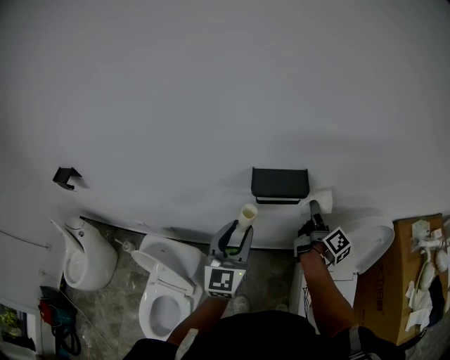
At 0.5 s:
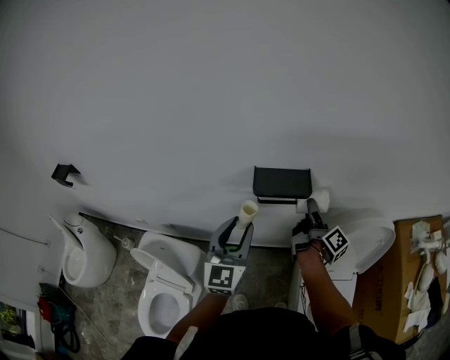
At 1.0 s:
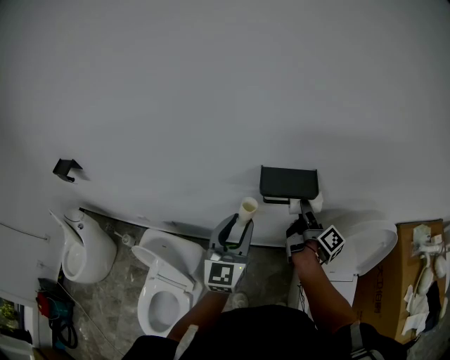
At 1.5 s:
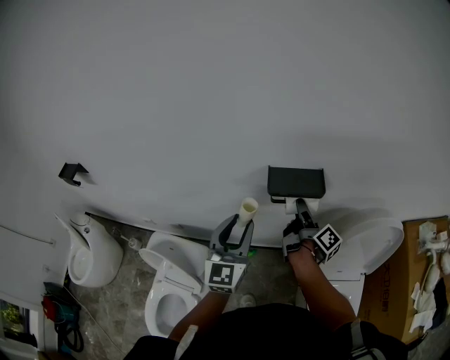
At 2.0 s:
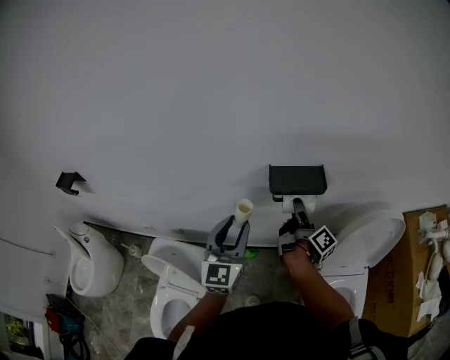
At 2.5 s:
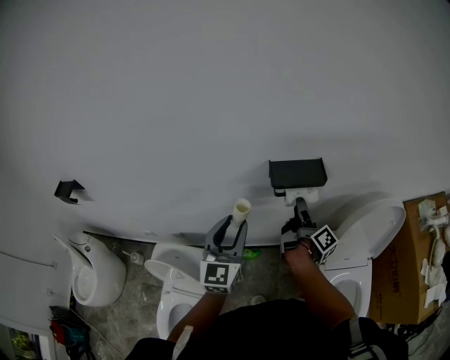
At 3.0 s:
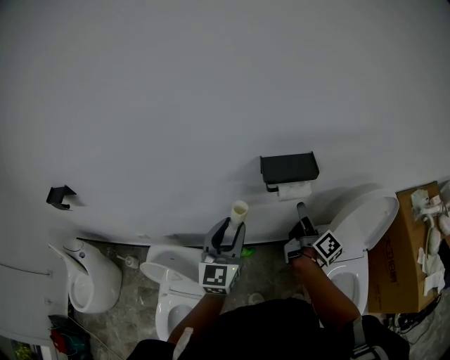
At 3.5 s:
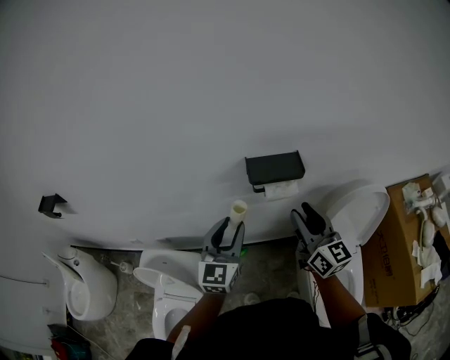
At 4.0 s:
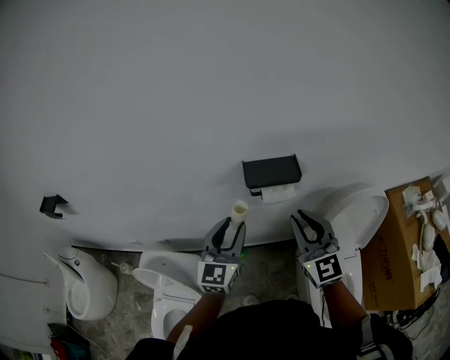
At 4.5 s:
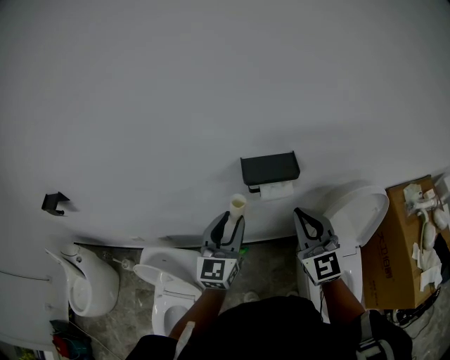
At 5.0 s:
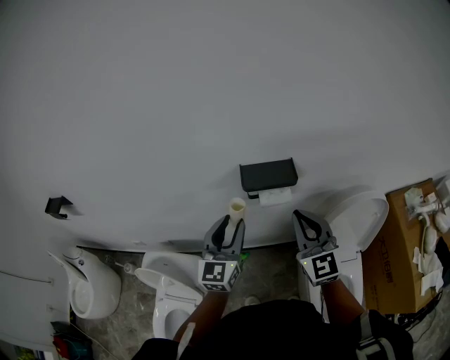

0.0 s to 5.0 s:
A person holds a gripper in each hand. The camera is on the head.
0.0 to 2.5 s: Both grippers travel together to the left, roughly 10 cm.
2.5 to 5.0 s: The left gripper goes some 5 cm to the right. The right gripper goes some 15 cm upward and backward, twists roughly 100 degrees counterclockwise, seen from behind, and closes its fingers.

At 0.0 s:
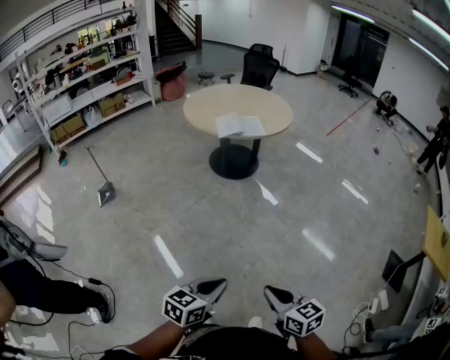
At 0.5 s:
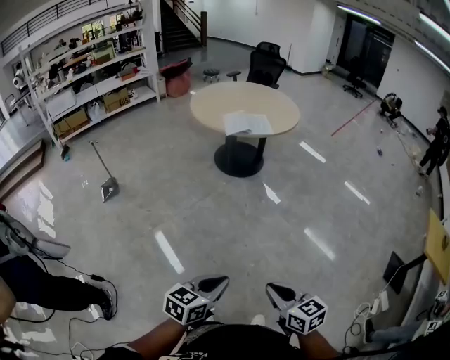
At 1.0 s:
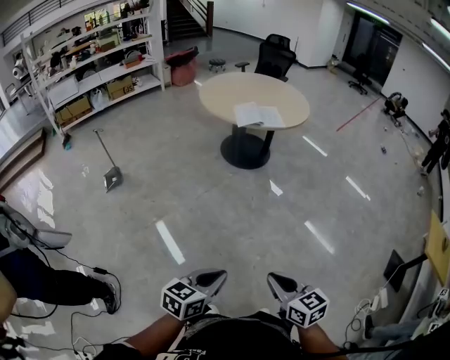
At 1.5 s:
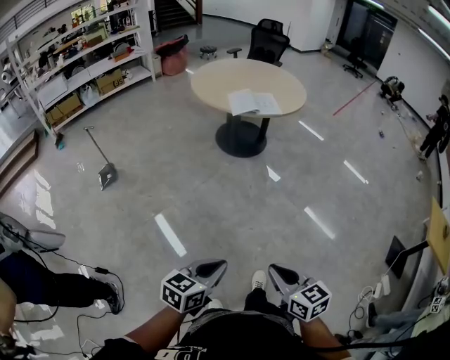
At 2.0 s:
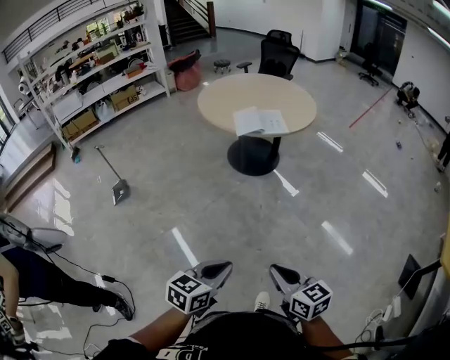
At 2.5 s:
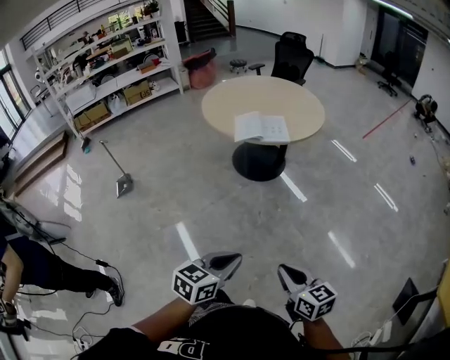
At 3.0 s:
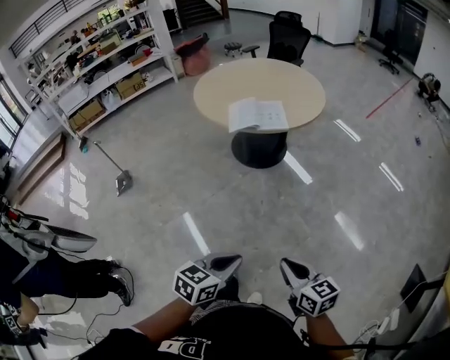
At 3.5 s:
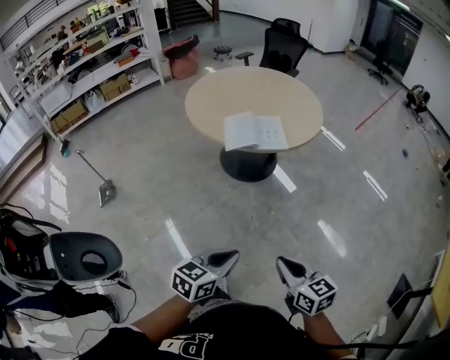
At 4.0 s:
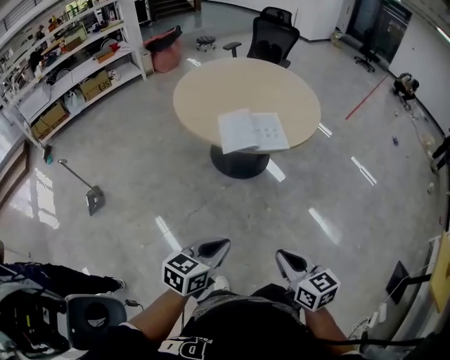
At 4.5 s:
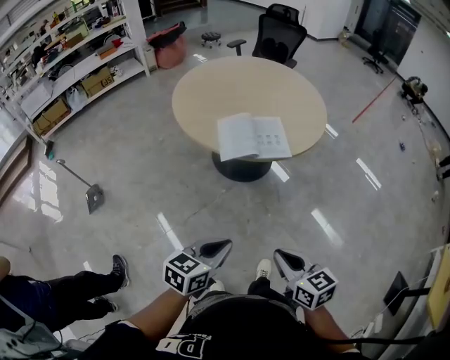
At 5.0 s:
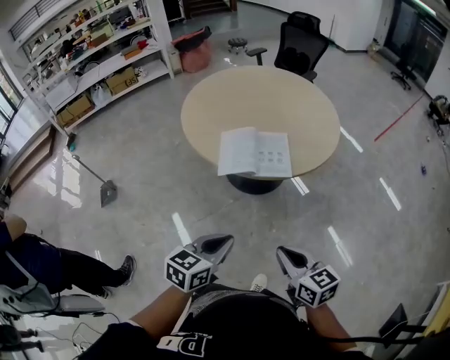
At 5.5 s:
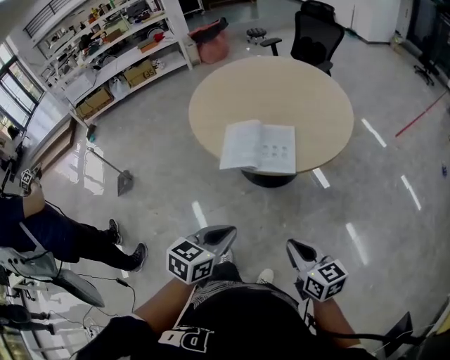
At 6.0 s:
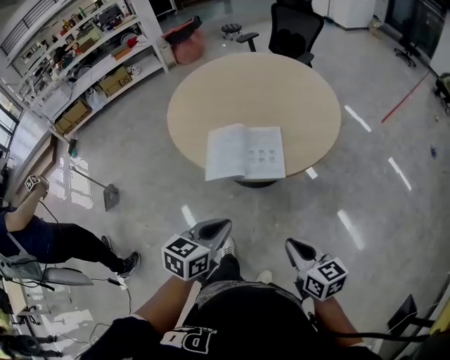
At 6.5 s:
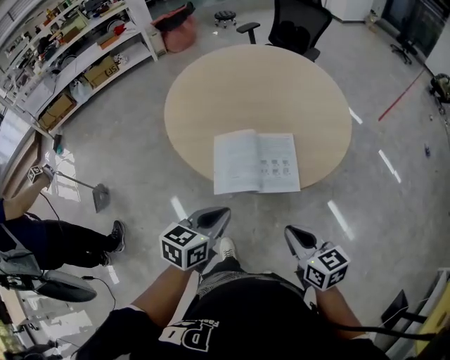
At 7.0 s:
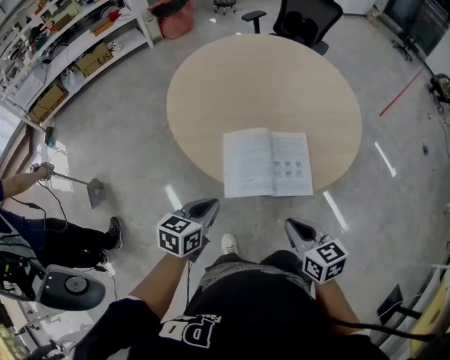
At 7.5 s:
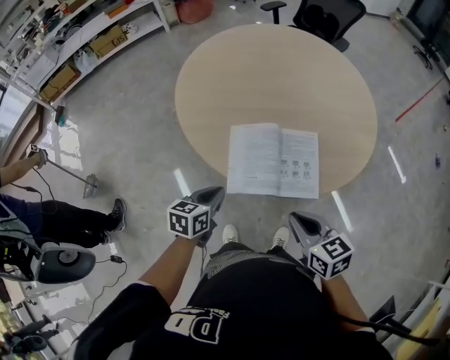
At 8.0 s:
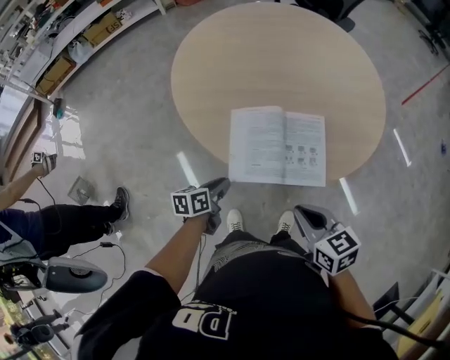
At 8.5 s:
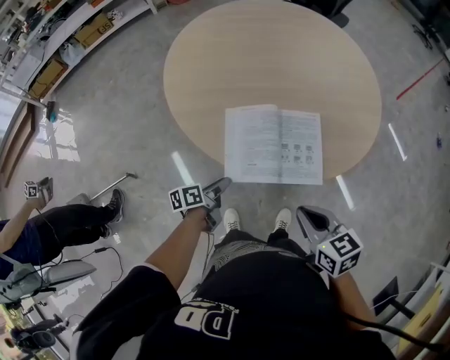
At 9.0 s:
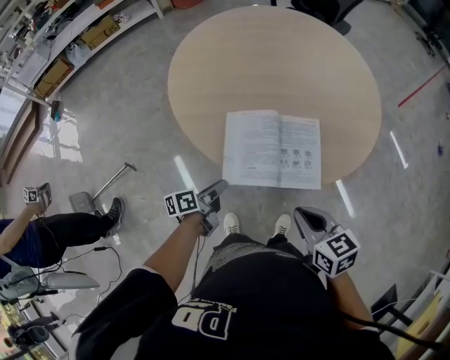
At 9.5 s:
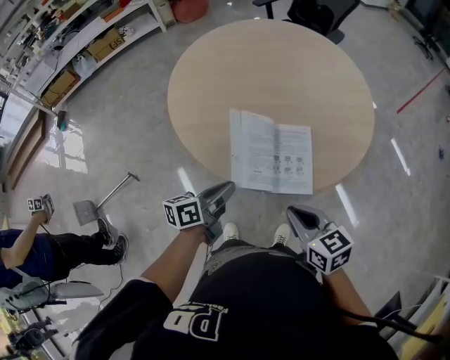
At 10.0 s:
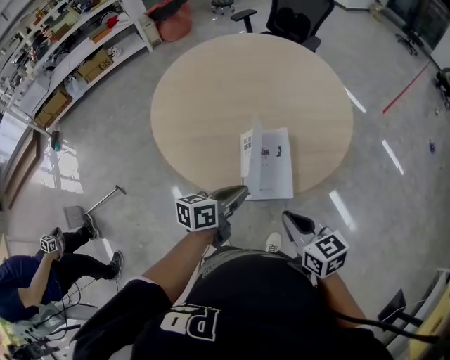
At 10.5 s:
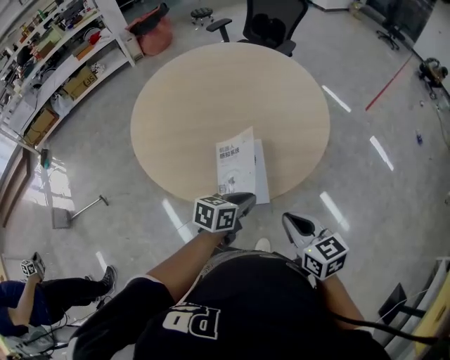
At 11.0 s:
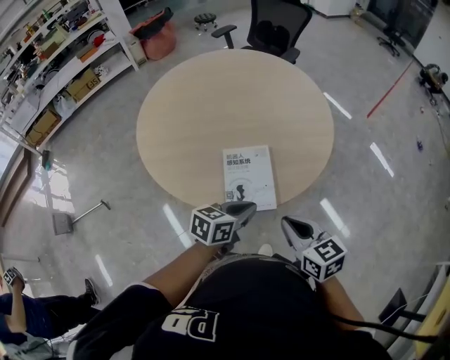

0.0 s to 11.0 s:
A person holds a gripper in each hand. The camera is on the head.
0.0 to 2.0 s: Both grippers move forward, roughly 15 cm.
2.0 to 3.5 s: Both grippers travel together forward, some 25 cm.
3.5 to 5.5 s: Both grippers move forward, some 30 cm.
5.5 to 7.5 s: The right gripper shifts roughly 25 cm forward and to the left; the left gripper heads forward, to the left and downward, covering approximately 35 cm.
7.5 to 9.0 s: The left gripper shifts roughly 10 cm downward, swivels some 40 degrees, and opens and closes again.
9.0 to 11.0 s: The left gripper is displaced to the right and upward by roughly 30 cm, and rotates around the line of its fingers by roughly 40 degrees, clockwise from behind, while the right gripper goes about 10 cm to the right.

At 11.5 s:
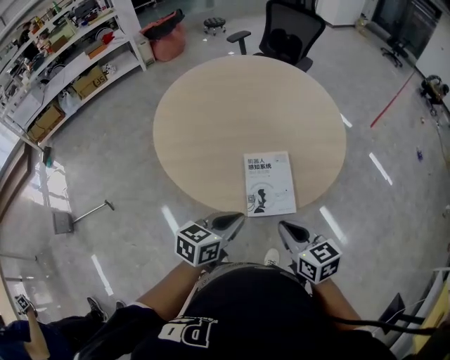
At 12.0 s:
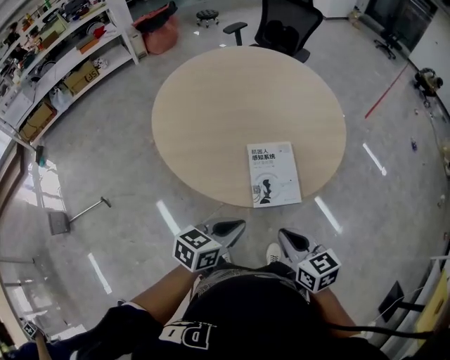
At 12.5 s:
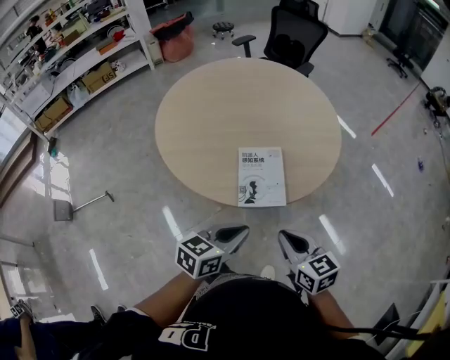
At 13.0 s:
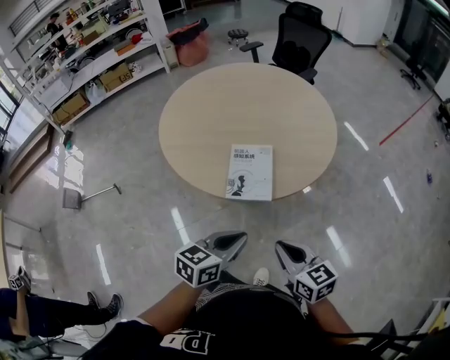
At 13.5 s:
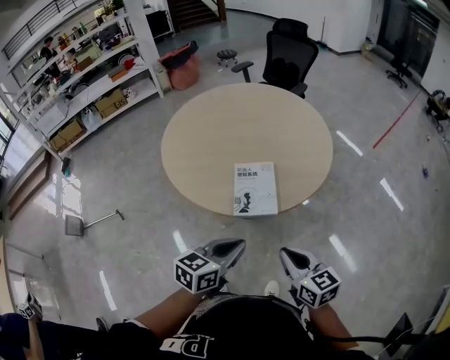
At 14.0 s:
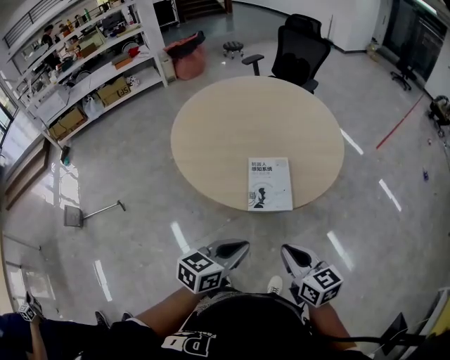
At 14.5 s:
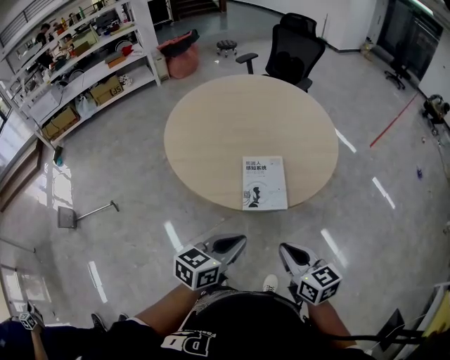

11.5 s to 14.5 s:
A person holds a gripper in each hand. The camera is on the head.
11.5 to 13.0 s: Both grippers travel together to the right and backward, roughly 20 cm.
13.0 to 14.5 s: The grippers both shift to the left by roughly 10 cm.

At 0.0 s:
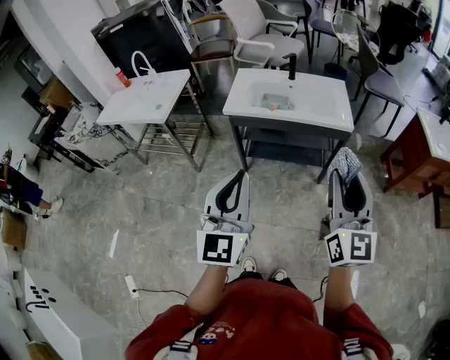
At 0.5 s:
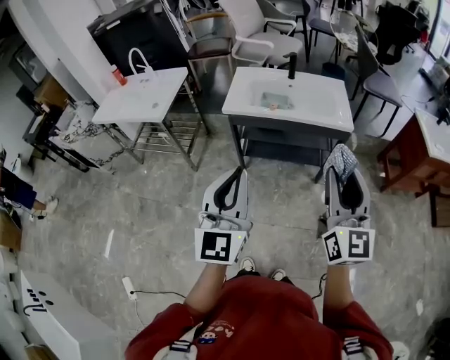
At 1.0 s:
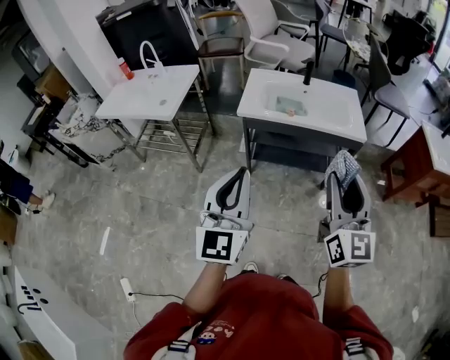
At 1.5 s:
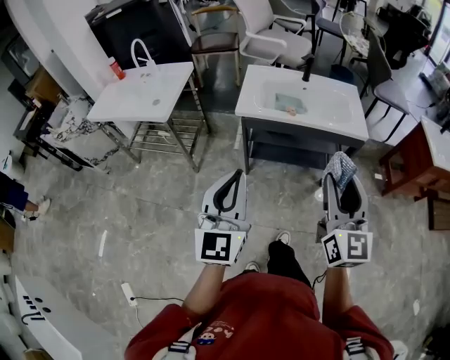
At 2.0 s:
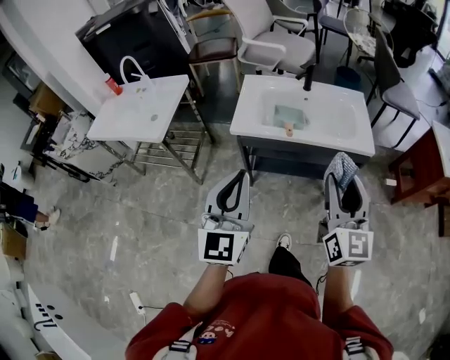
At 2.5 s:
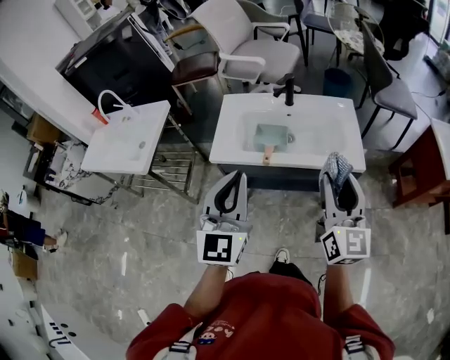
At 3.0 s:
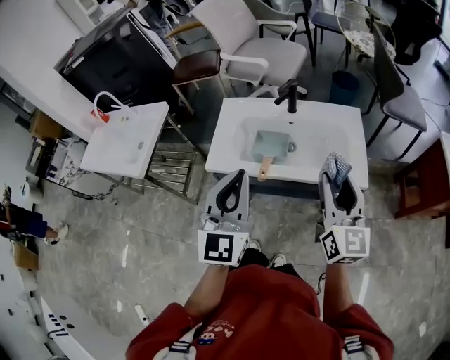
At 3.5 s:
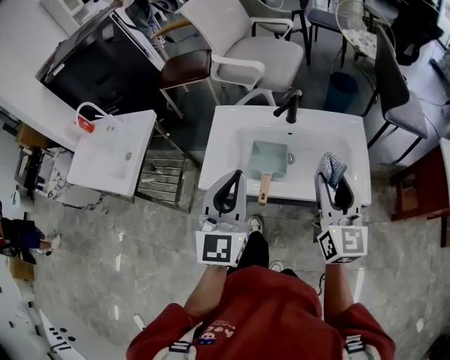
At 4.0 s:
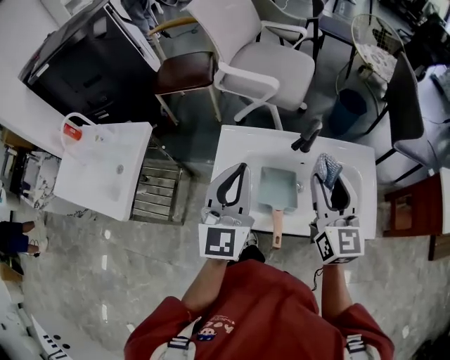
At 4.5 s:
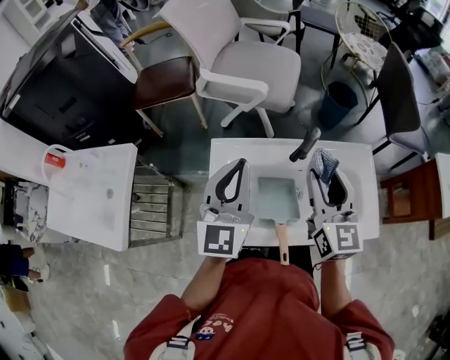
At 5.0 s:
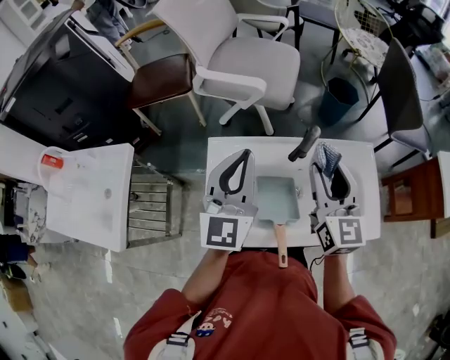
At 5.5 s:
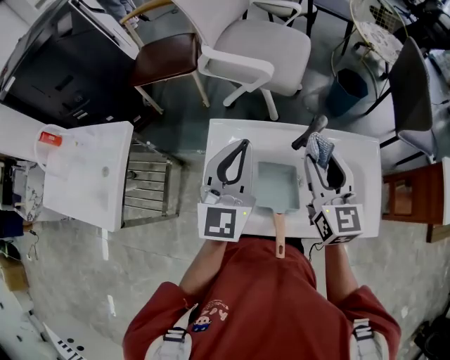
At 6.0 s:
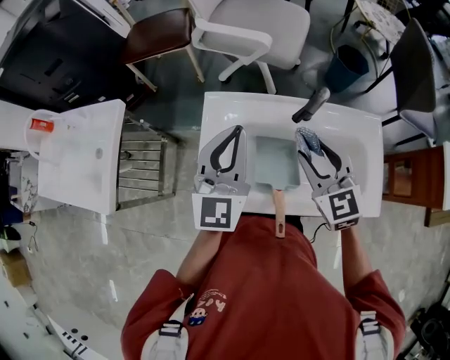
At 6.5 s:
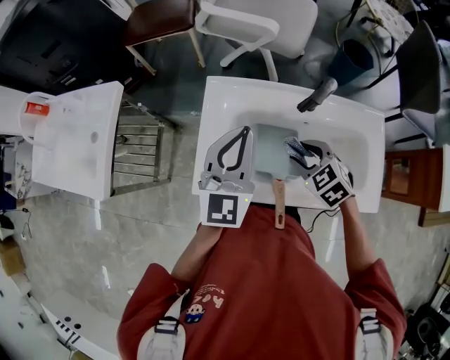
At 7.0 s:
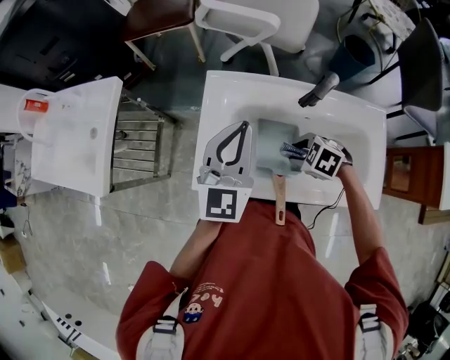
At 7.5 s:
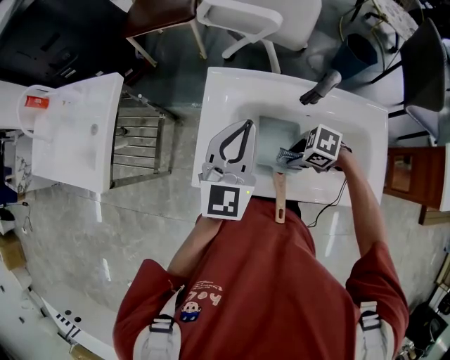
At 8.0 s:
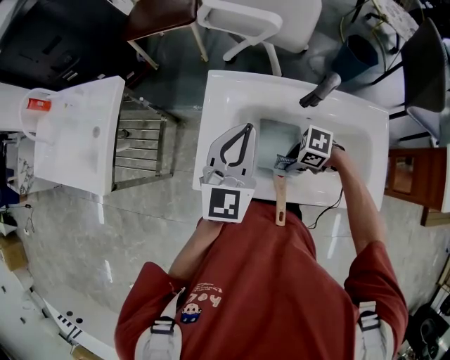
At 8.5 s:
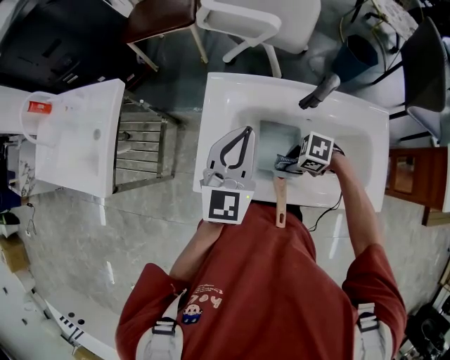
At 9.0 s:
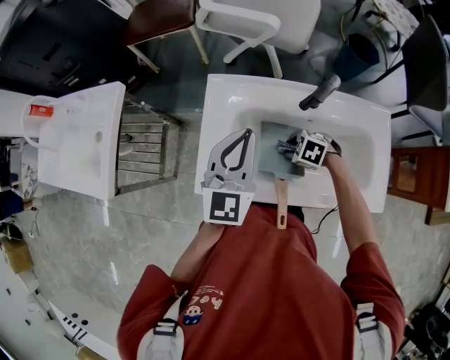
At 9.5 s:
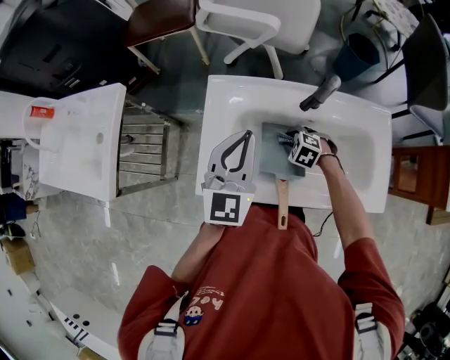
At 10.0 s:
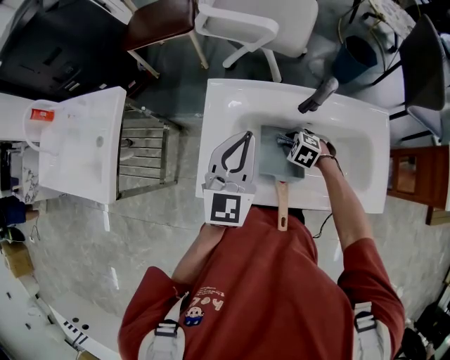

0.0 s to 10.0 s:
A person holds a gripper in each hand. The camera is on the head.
0.0 to 2.0 s: Both grippers move forward and to the left, roughly 20 cm.
2.0 to 4.0 s: The pair of grippers is taken forward, about 40 cm.
4.0 to 6.0 s: The right gripper goes some 10 cm downward and forward, and rotates some 30 degrees. Meanwhile the left gripper is displaced forward and downward by about 10 cm.
6.0 to 8.0 s: The left gripper travels downward by some 5 cm. Meanwhile the right gripper is displaced downward by roughly 25 cm, and points its fingers roughly 30 degrees further downward.
8.0 to 10.0 s: The right gripper shifts by about 10 cm, and changes its angle by some 40 degrees.
